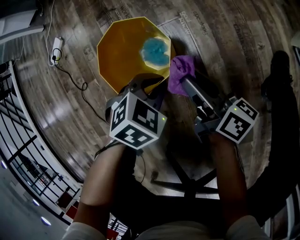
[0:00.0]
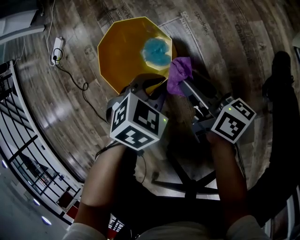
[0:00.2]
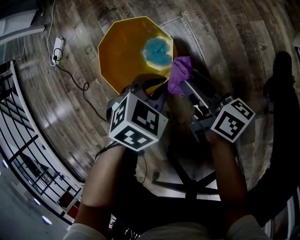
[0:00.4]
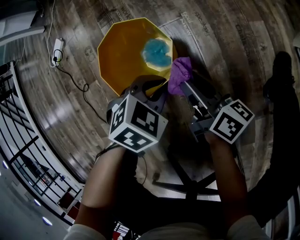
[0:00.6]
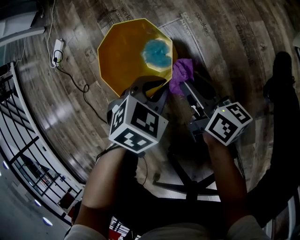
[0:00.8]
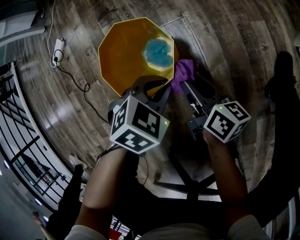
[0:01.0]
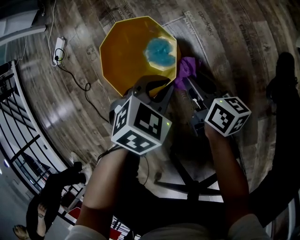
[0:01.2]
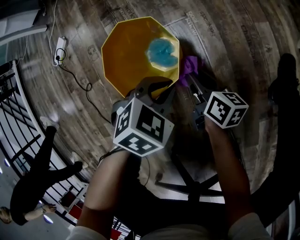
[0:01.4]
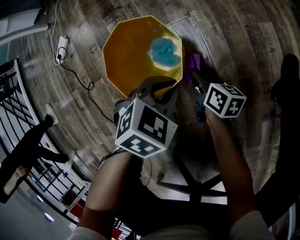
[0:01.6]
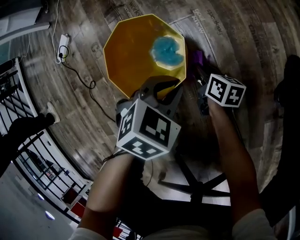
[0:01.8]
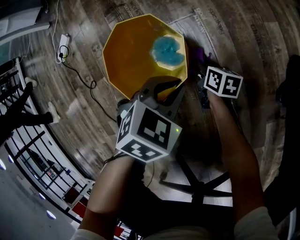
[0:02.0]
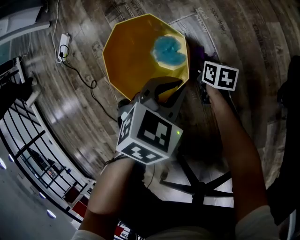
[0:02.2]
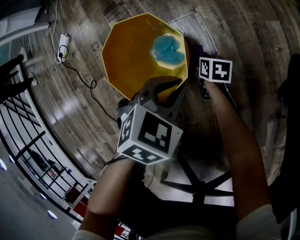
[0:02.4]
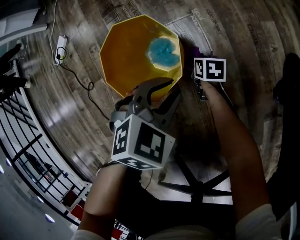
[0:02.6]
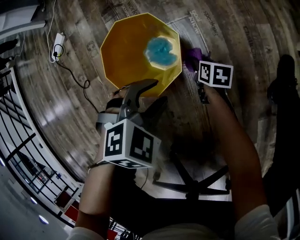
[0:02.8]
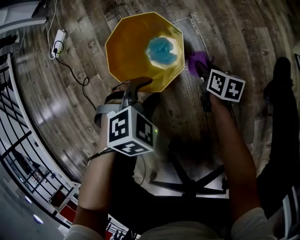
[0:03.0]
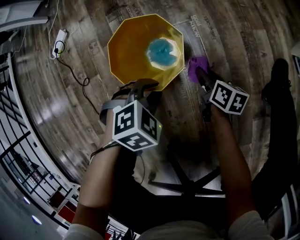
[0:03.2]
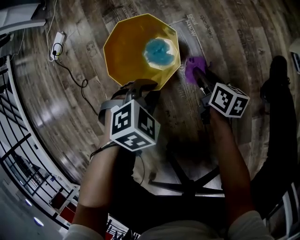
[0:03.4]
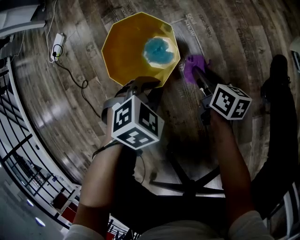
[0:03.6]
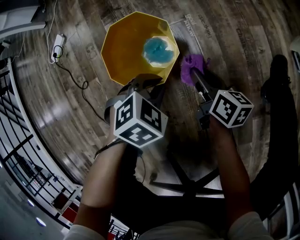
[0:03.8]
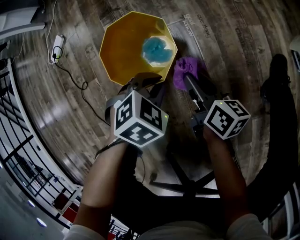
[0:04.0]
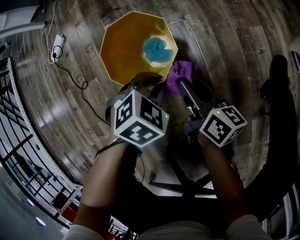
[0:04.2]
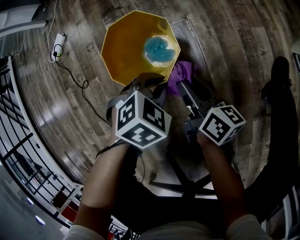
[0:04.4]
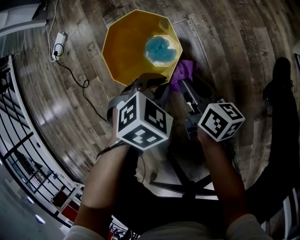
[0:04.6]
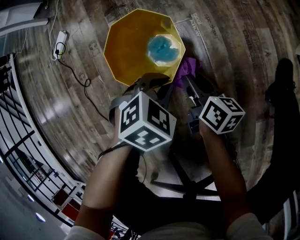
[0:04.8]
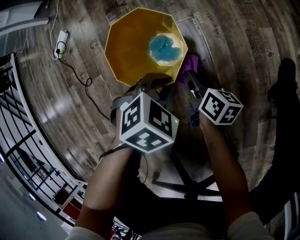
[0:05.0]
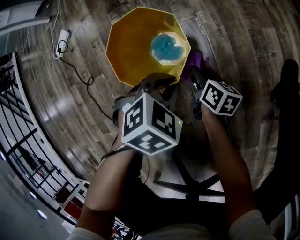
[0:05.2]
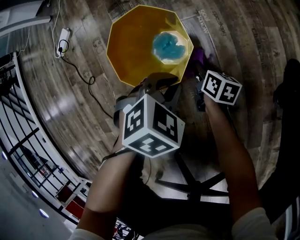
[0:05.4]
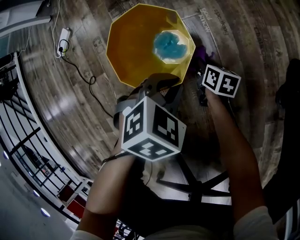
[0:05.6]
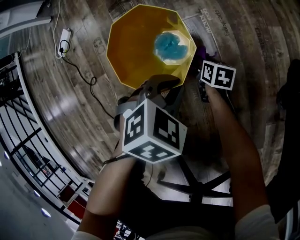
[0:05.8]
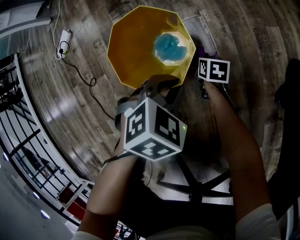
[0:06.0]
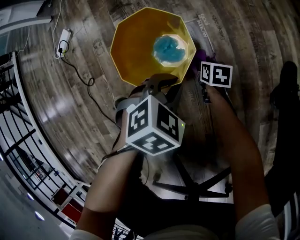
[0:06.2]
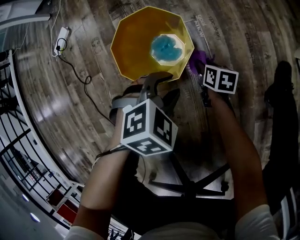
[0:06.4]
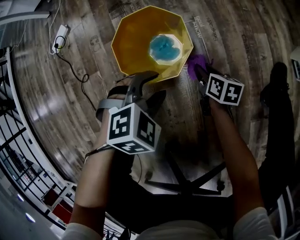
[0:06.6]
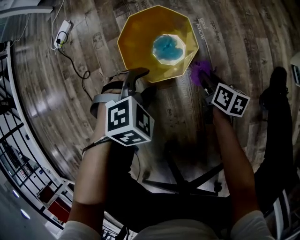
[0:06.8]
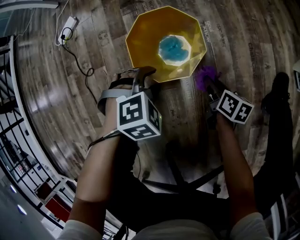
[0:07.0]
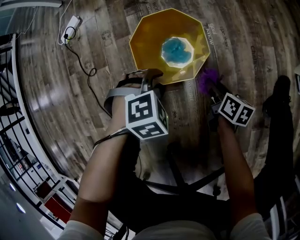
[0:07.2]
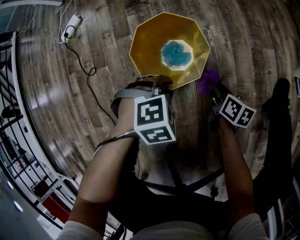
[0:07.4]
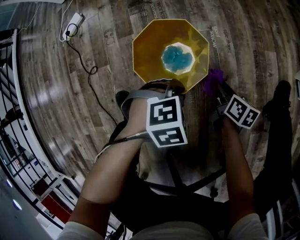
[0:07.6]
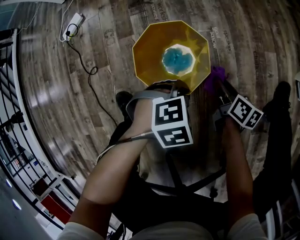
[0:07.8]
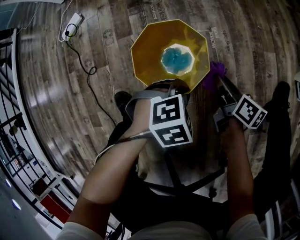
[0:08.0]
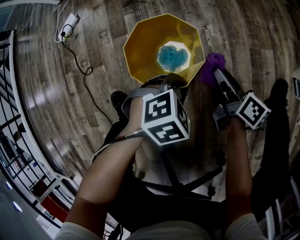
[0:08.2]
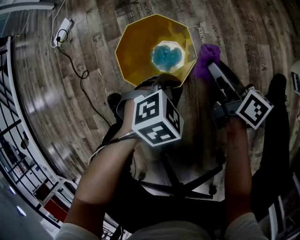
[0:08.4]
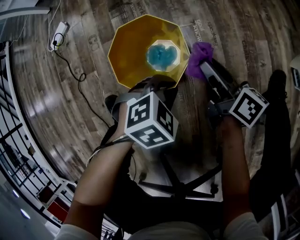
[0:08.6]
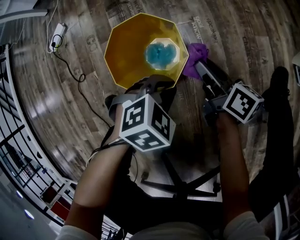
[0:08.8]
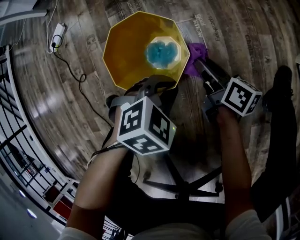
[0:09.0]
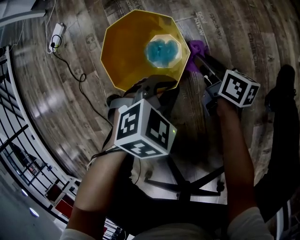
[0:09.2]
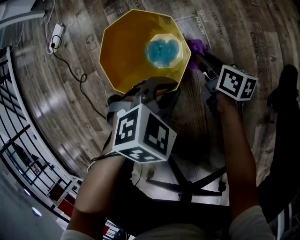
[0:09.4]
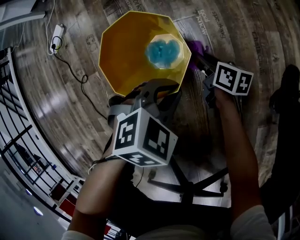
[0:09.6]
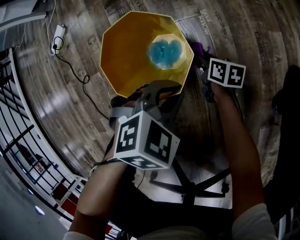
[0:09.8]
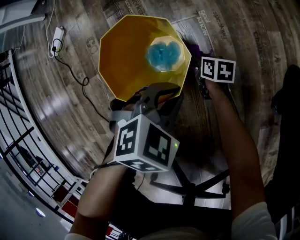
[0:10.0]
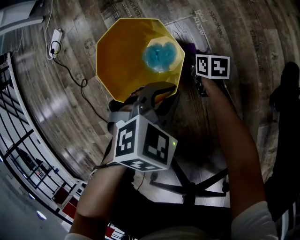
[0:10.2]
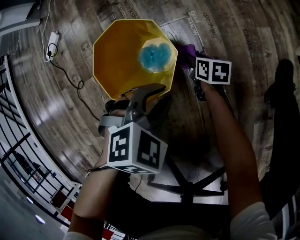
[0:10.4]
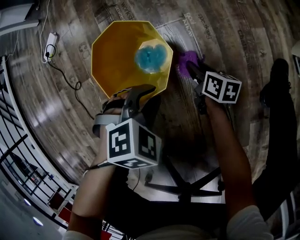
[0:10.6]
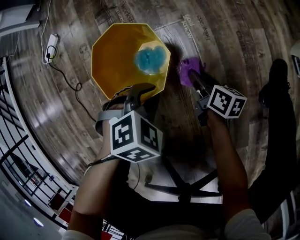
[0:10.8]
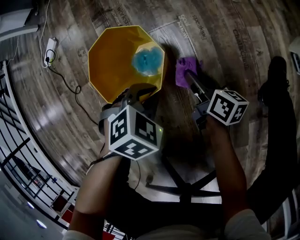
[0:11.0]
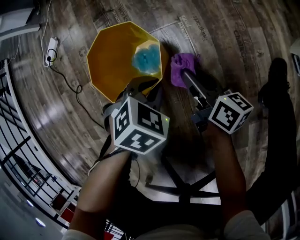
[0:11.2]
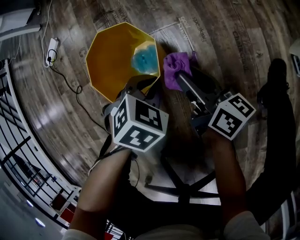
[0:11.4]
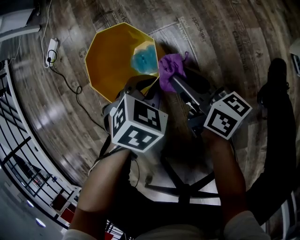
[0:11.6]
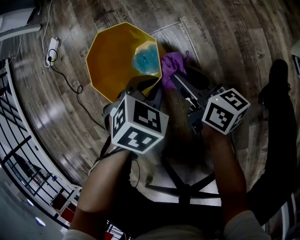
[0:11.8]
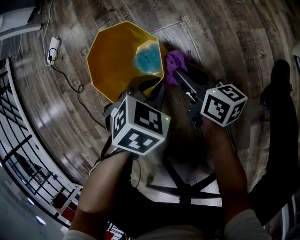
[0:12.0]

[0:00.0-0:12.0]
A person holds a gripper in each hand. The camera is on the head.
0:00.0 to 0:01.6: The right gripper travels downward by about 15 cm, and turns by about 20 degrees.
0:01.6 to 0:03.0: The left gripper shifts by about 10 cm, and opens. The right gripper travels downward and back again, some 15 cm each way.
0:03.0 to 0:04.4: The left gripper shifts by about 5 cm, and closes its fingers. Meanwhile the right gripper travels upward by some 15 cm, and rotates about 30 degrees.
0:04.4 to 0:06.0: The right gripper is displaced downward by roughly 25 cm, and points its fingers some 40 degrees further downward.
0:06.0 to 0:07.6: The right gripper travels upward by some 15 cm, while the left gripper opens, then closes once more.
0:07.6 to 0:09.0: The right gripper changes its angle by about 20 degrees.
0:09.0 to 0:10.4: The right gripper heads downward, covering approximately 15 cm, and rotates roughly 30 degrees.
0:10.4 to 0:12.0: The right gripper shifts roughly 15 cm upward, and tips its fingers upward by some 30 degrees. The left gripper shifts by approximately 5 cm.

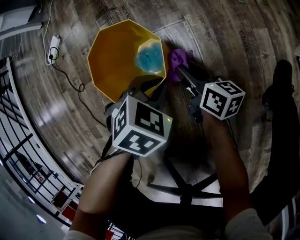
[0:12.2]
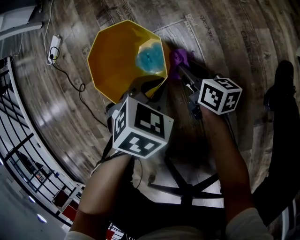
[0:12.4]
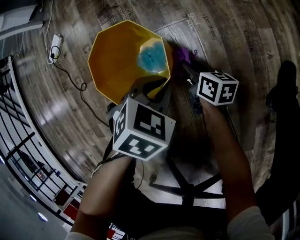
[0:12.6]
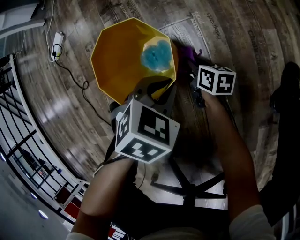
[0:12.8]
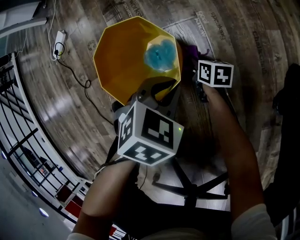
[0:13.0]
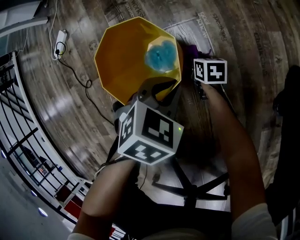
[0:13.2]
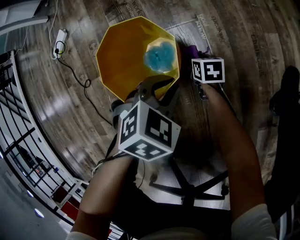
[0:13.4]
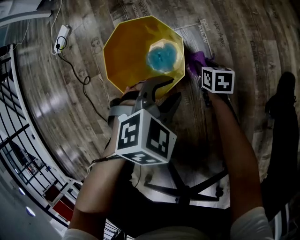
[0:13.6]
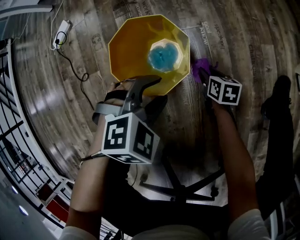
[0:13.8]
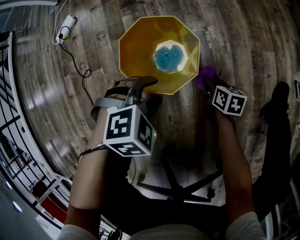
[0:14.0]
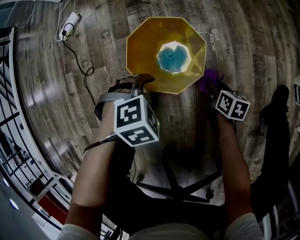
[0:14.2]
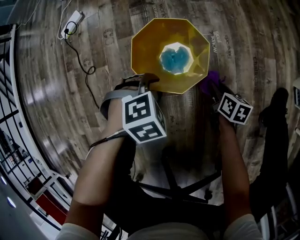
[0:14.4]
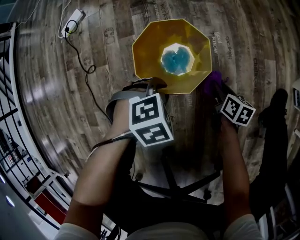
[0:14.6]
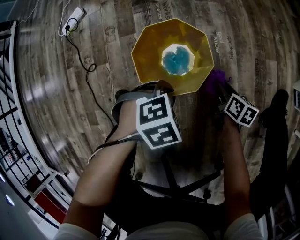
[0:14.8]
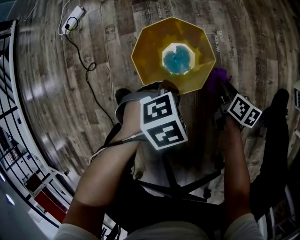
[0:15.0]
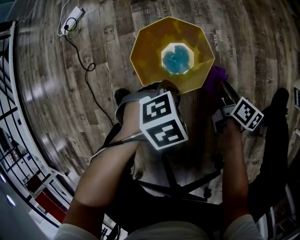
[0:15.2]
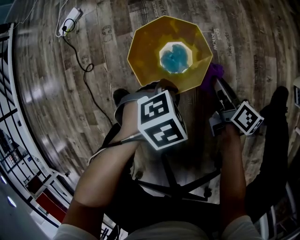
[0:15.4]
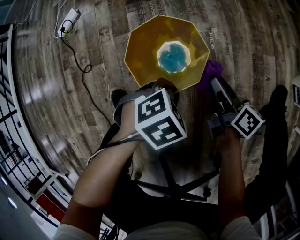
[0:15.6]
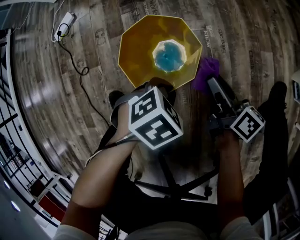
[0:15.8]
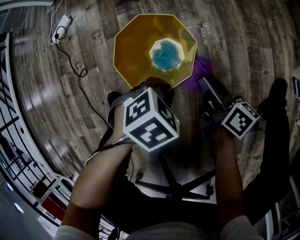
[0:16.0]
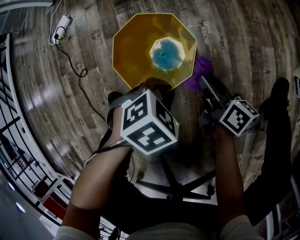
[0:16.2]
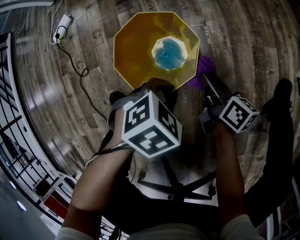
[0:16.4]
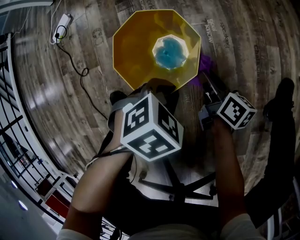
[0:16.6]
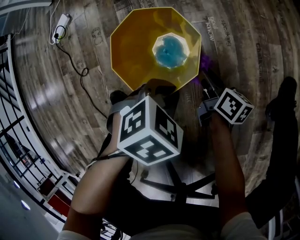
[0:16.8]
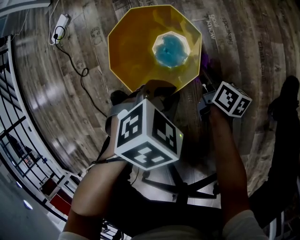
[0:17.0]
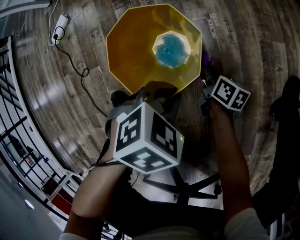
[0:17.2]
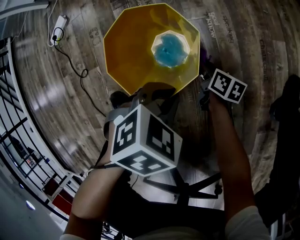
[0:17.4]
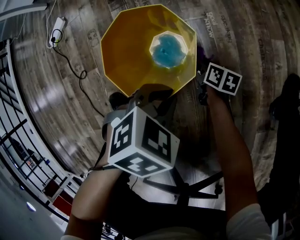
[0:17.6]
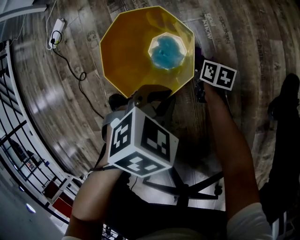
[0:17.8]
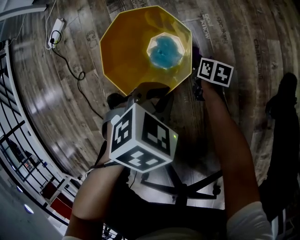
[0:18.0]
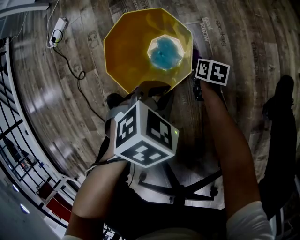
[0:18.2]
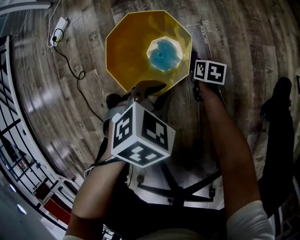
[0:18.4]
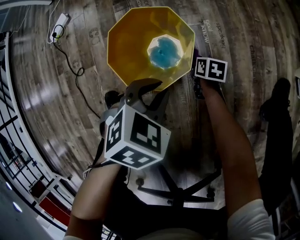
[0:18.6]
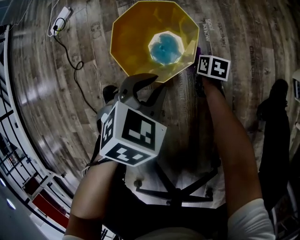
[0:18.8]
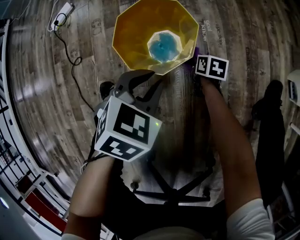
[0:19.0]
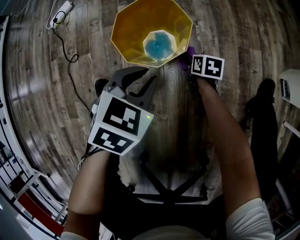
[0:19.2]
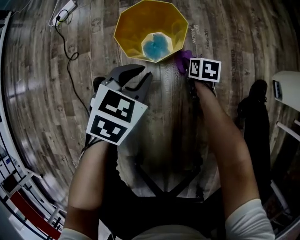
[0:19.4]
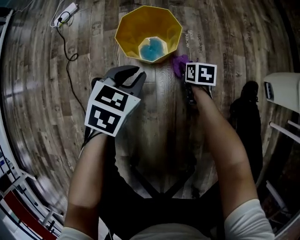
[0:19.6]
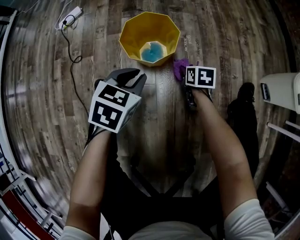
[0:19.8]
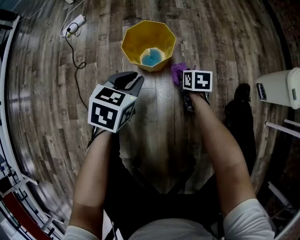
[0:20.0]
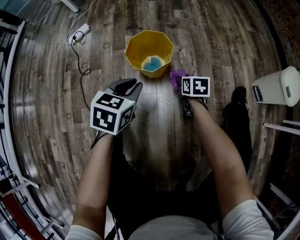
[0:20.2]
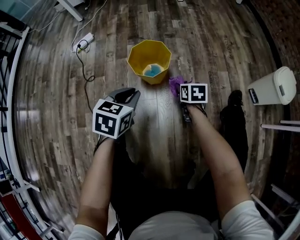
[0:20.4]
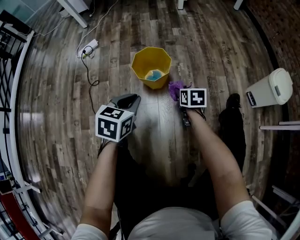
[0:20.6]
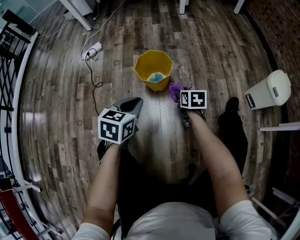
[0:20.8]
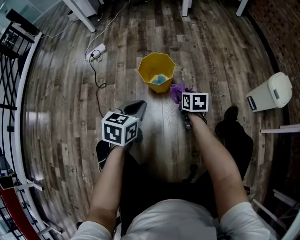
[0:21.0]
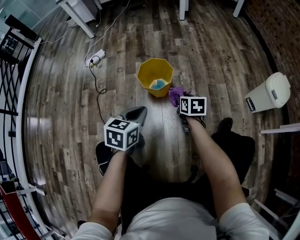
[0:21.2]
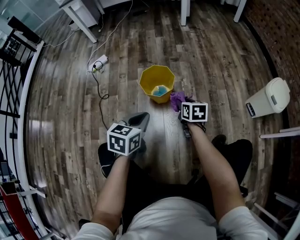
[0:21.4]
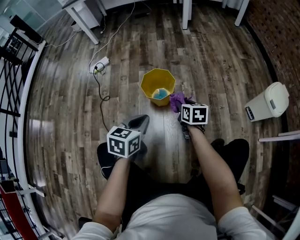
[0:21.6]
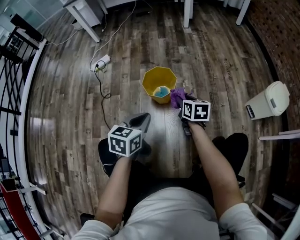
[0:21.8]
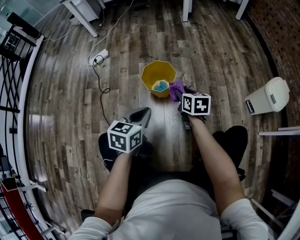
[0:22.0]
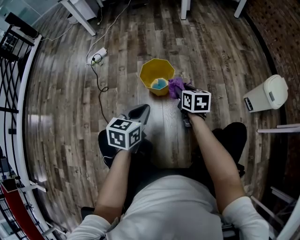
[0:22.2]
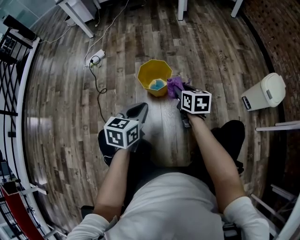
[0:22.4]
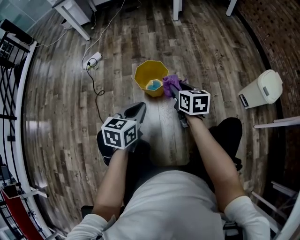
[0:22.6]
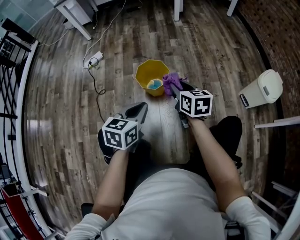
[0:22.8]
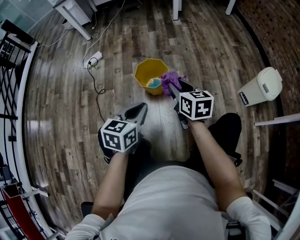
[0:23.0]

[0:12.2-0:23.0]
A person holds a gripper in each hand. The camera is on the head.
0:12.2 to 0:13.8: The left gripper moves roughly 5 cm, turns by approximately 20 degrees, and opens its fingers. Meanwhile the right gripper is displaced downward by some 10 cm, and changes its angle by roughly 30 degrees.
0:13.8 to 0:15.2: The left gripper turns by about 20 degrees, and closes up. The right gripper goes some 10 cm upward, and turns by some 30 degrees.
0:15.2 to 0:16.8: The right gripper moves some 10 cm upward and comes back.
0:16.8 to 0:18.4: The right gripper moves downward, about 15 cm, and turns by roughly 30 degrees.
0:18.4 to 0:20.0: The left gripper goes approximately 15 cm upward and backward, and swivels roughly 40 degrees. The right gripper travels upward by about 20 cm, and changes its angle by roughly 20 degrees.
0:20.0 to 0:21.4: The left gripper is displaced upward and backward by roughly 15 cm; the right gripper heads upward, covering some 20 cm.
0:21.4 to 0:23.0: The left gripper goes roughly 5 cm upward. The right gripper goes some 15 cm upward.

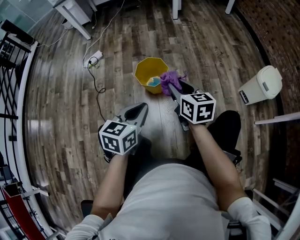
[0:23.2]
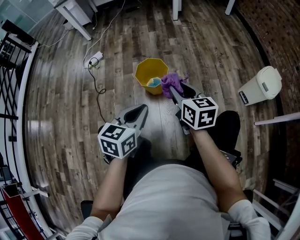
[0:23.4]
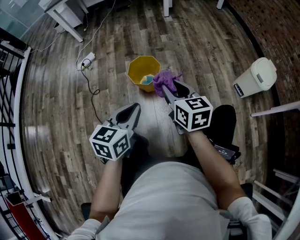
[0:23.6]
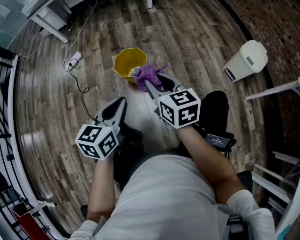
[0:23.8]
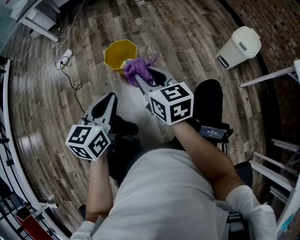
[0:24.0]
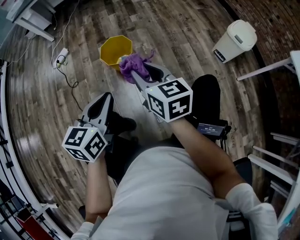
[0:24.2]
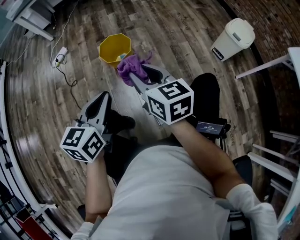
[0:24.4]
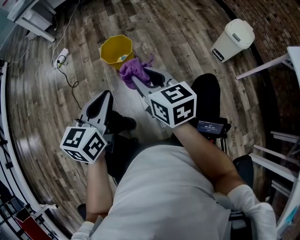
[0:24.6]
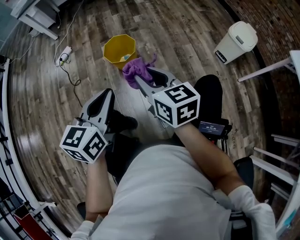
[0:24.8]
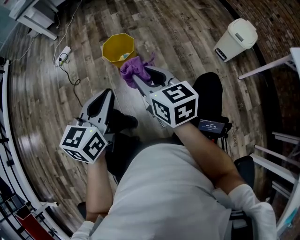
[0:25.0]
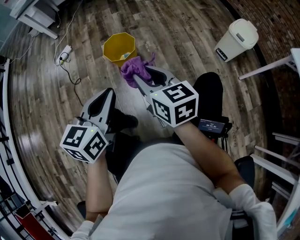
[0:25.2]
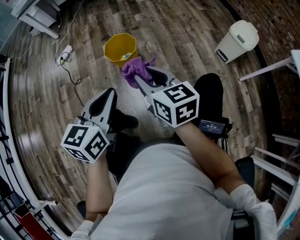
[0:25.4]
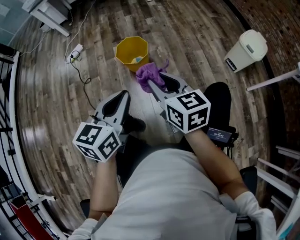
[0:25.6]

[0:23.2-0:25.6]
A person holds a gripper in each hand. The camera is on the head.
0:23.2 to 0:24.4: The right gripper heads backward, covering roughly 10 cm, while the left gripper goes about 10 cm backward.
0:24.4 to 0:25.6: The grippers make only small movements.
